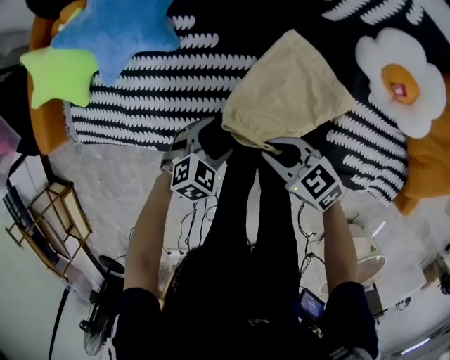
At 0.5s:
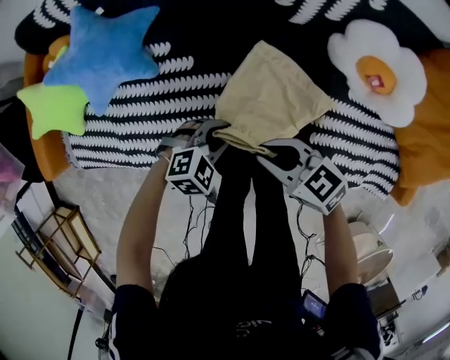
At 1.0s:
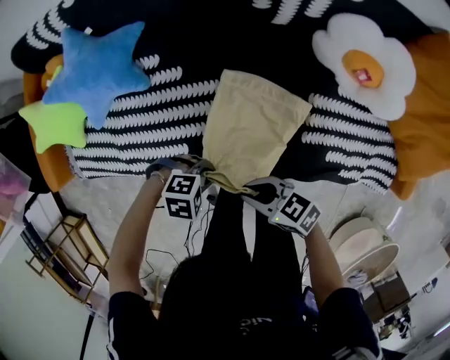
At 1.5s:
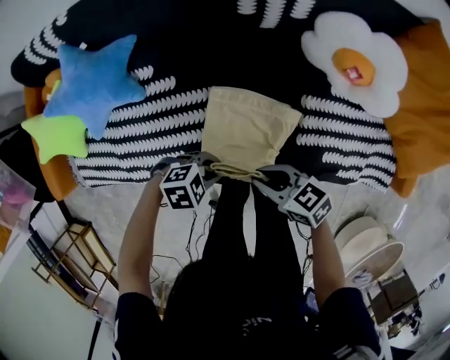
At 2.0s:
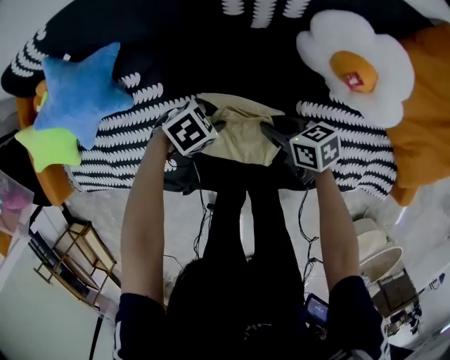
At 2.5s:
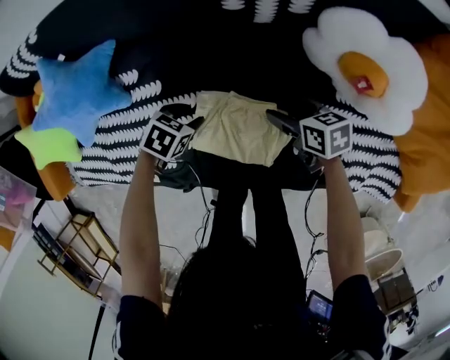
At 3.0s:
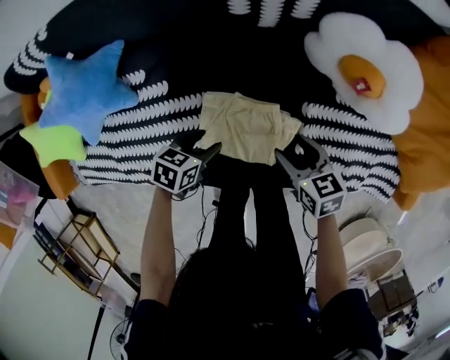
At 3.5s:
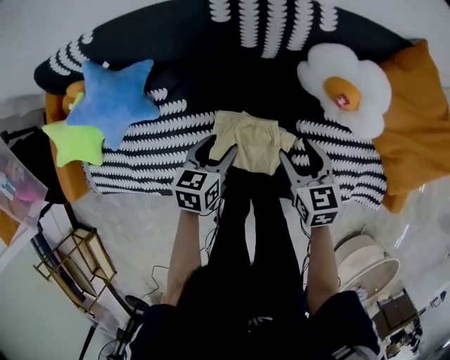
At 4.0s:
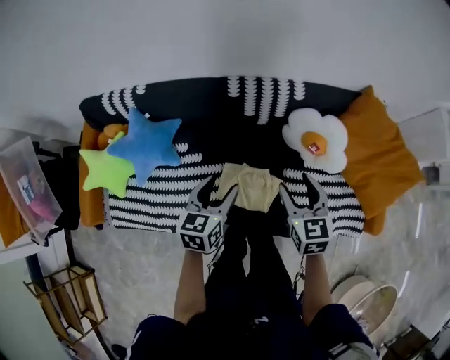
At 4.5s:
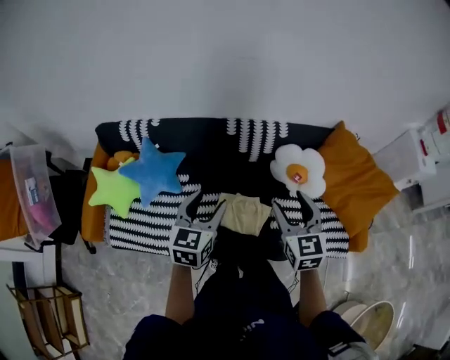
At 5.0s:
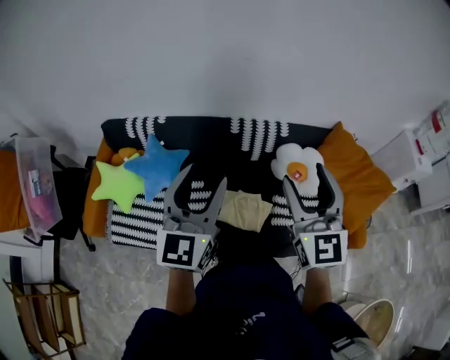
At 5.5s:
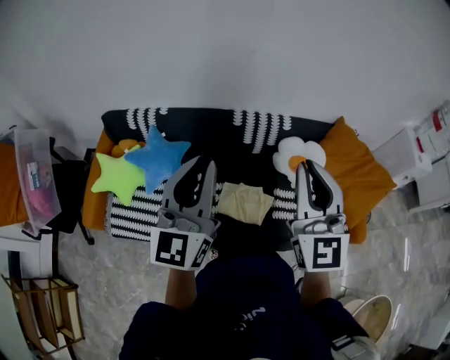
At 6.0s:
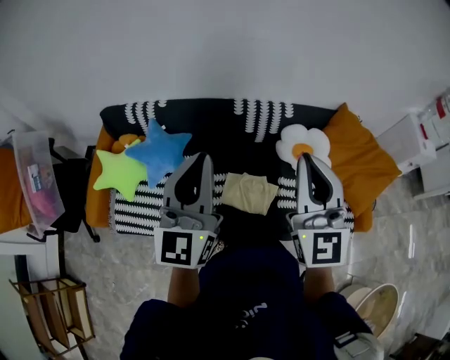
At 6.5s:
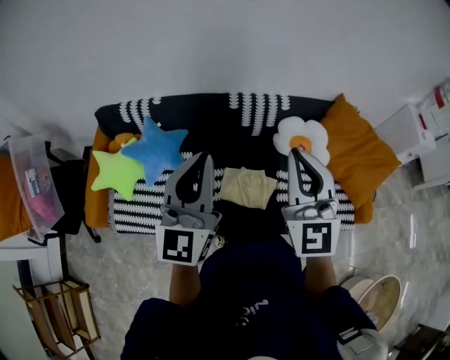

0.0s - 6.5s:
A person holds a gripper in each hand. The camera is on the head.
0.0s - 2.0s: The right gripper moves some 20 cm, and turns by about 30 degrees. Meanwhile the left gripper moves approximately 20 cm, swivels some 30 degrees, and closes.
2.0s - 4.5s: The grippers both shift upward by roughly 50 cm. The right gripper swivels approximately 60 degrees, and opens its fingers. Meanwhile the left gripper tips its fingers upward by some 40 degrees, and opens up.
4.5s - 6.5s: The left gripper heads upward, covering some 20 cm, angles its fingers upward, by about 40 degrees, and closes up; the right gripper is displaced upward and to the left by roughly 15 cm, turns by approximately 30 degrees, and closes its fingers.

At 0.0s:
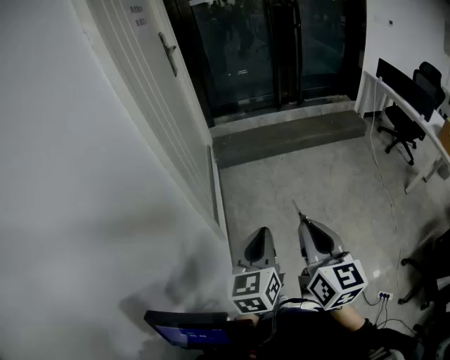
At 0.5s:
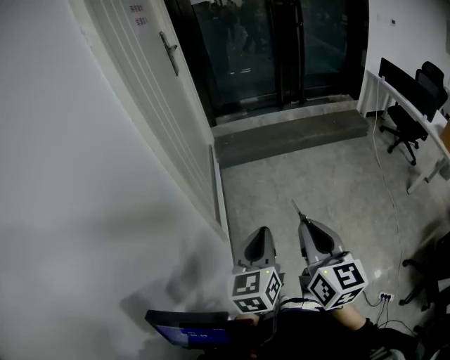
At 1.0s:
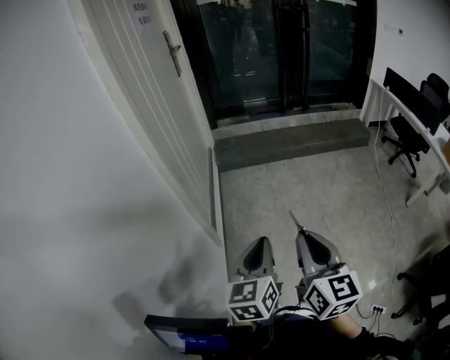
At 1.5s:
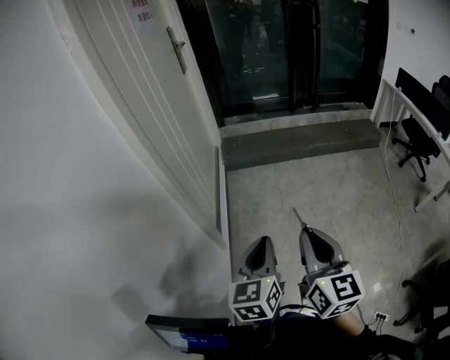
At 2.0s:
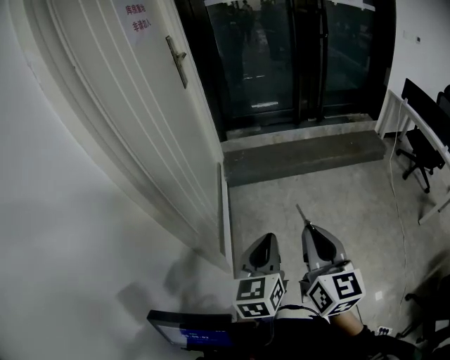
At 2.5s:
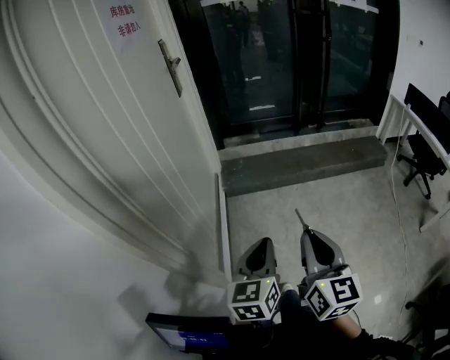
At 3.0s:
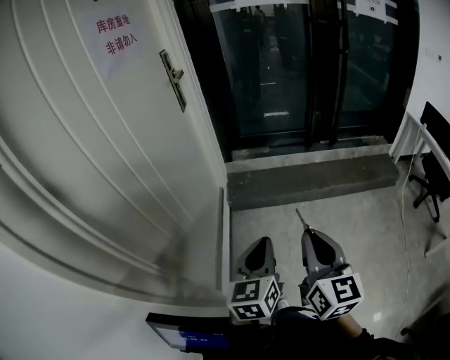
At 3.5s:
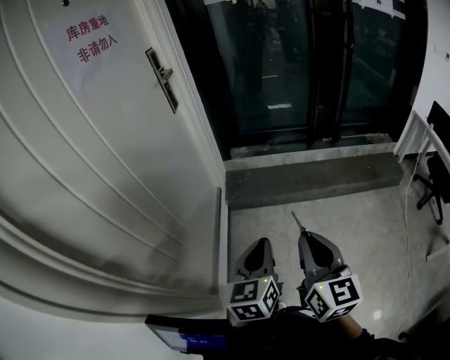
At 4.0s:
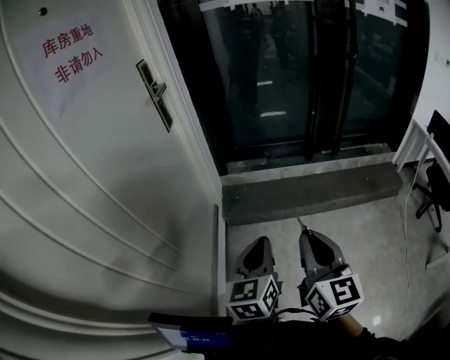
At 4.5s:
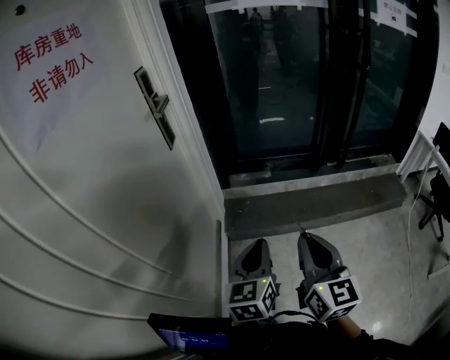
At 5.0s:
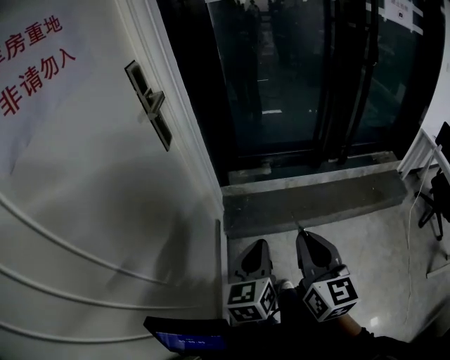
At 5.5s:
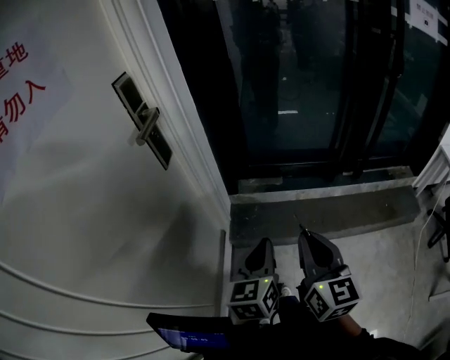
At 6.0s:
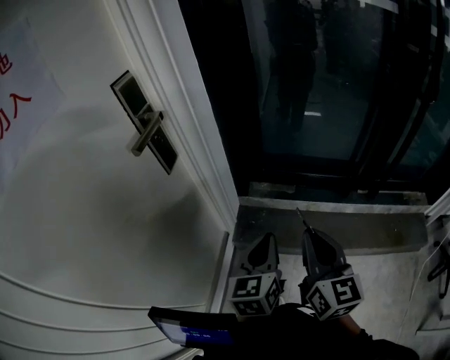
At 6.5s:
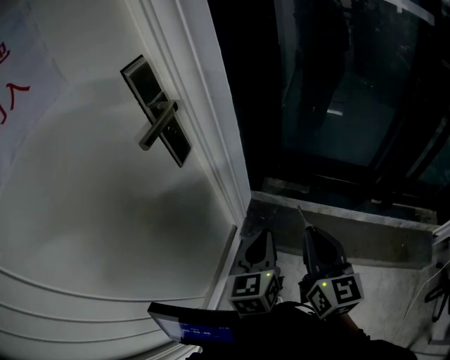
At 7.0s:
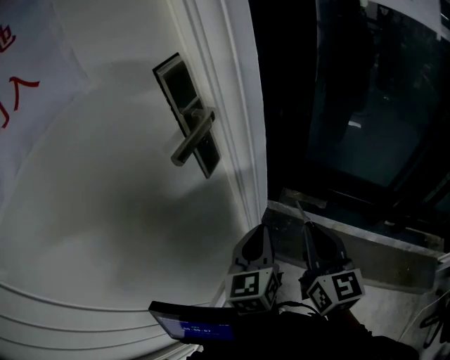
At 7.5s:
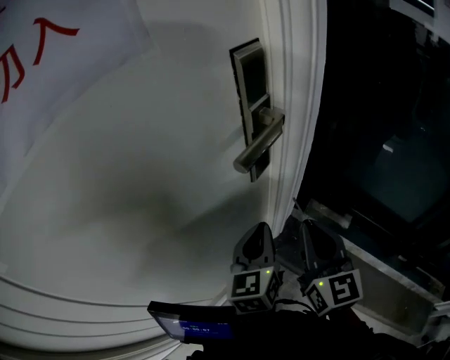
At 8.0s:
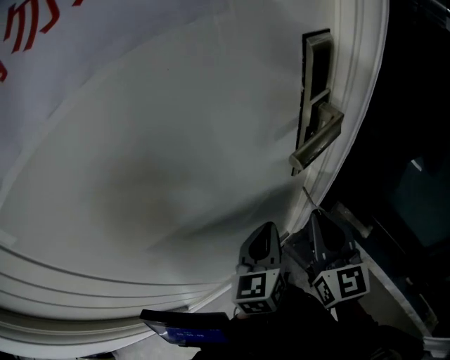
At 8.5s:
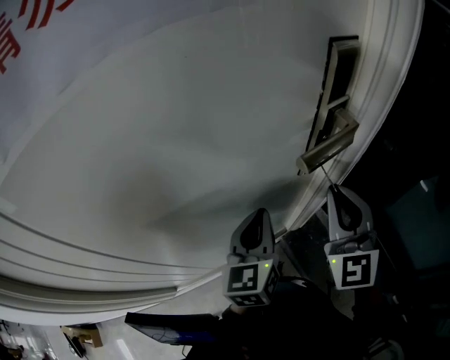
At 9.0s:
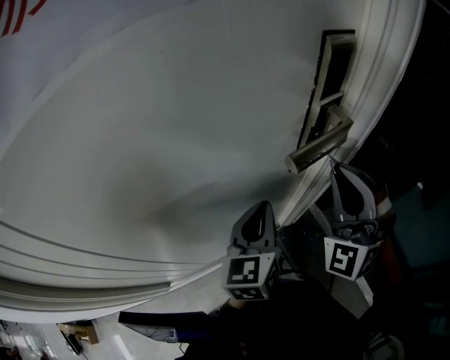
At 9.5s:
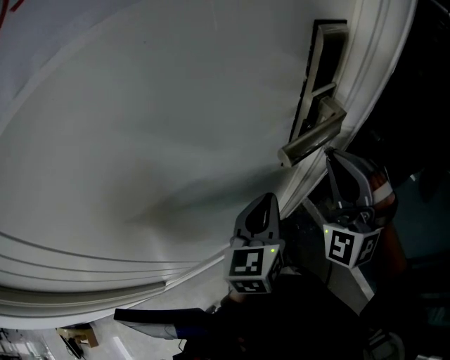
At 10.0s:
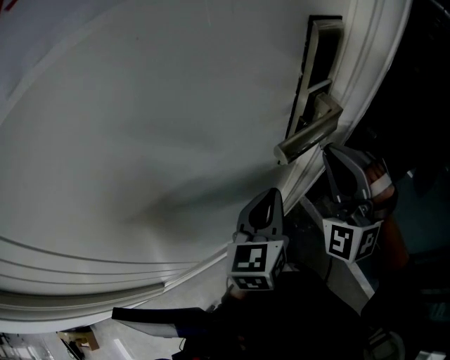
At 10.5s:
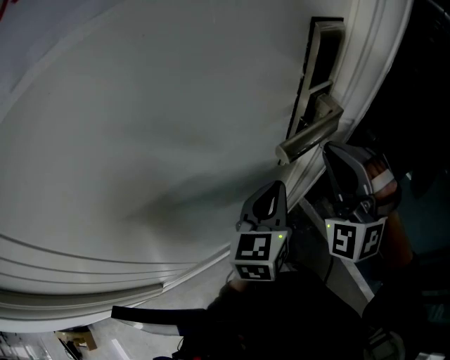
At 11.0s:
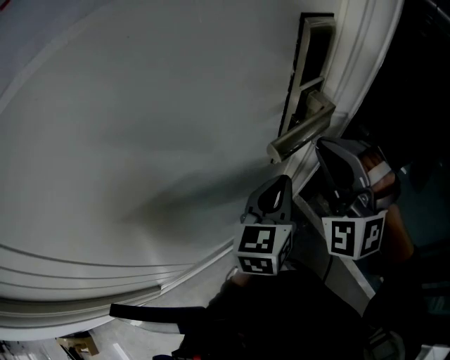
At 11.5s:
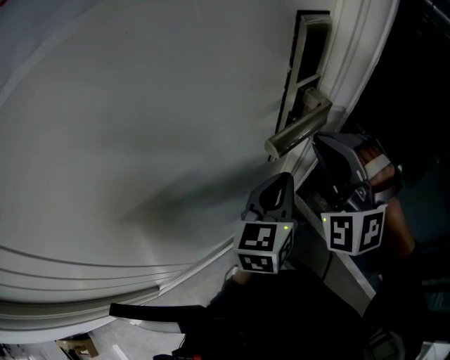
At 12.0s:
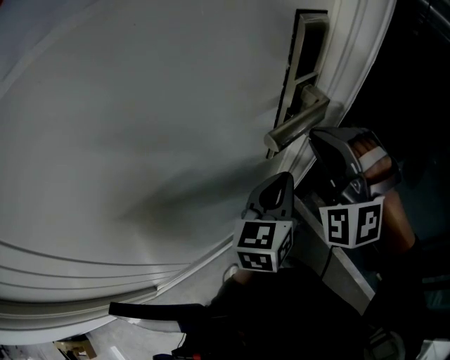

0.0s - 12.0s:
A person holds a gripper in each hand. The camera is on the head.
0.0s - 2.0s: The grippers both shift forward by about 20 cm.
2.0s - 4.0s: Both grippers are carried forward, approximately 40 cm.
4.0s - 6.0s: The two grippers go roughly 35 cm forward.
6.0s - 8.0s: The right gripper ends up about 35 cm from where it was, and rotates roughly 40 degrees, while the left gripper shifts by roughly 30 cm, and changes its angle by roughly 40 degrees.
8.0s - 10.0s: The right gripper heads forward and upward, covering roughly 10 cm, and twists approximately 80 degrees counterclockwise, seen from behind; the left gripper changes place by about 5 cm.
10.0s - 12.0s: The left gripper moves some 5 cm.

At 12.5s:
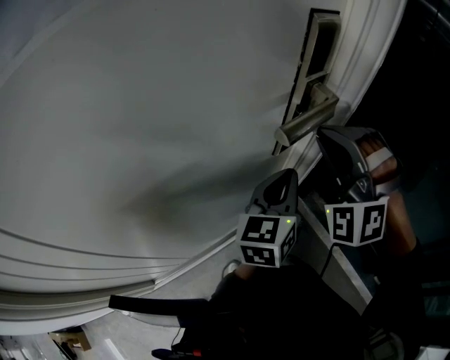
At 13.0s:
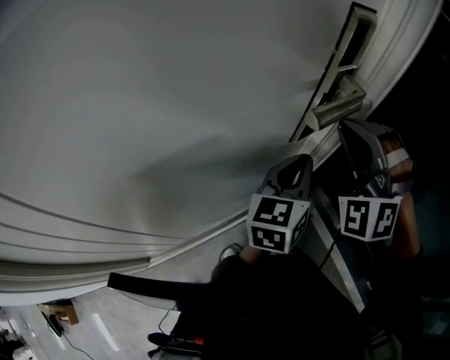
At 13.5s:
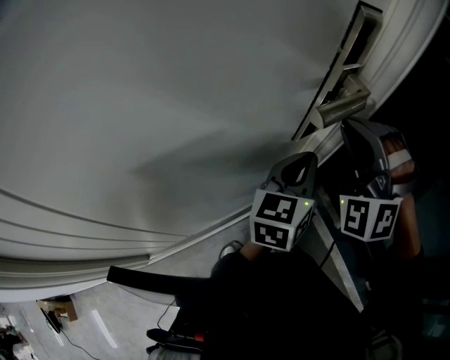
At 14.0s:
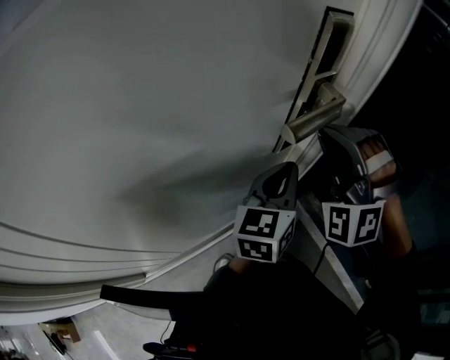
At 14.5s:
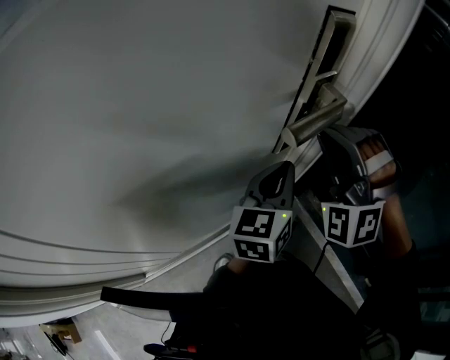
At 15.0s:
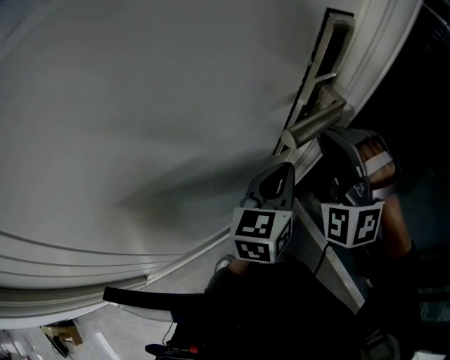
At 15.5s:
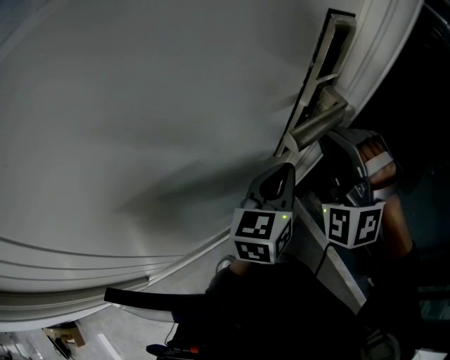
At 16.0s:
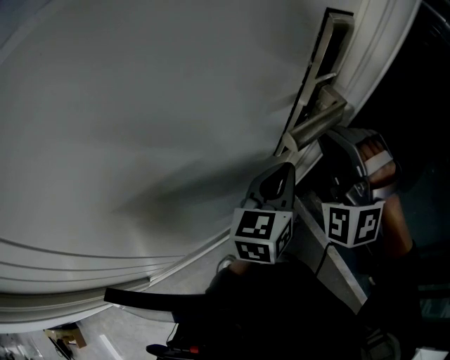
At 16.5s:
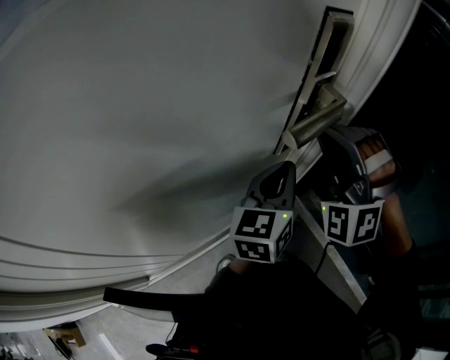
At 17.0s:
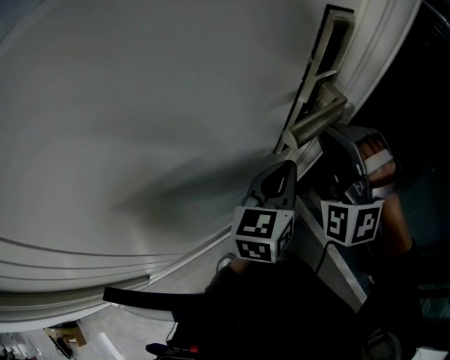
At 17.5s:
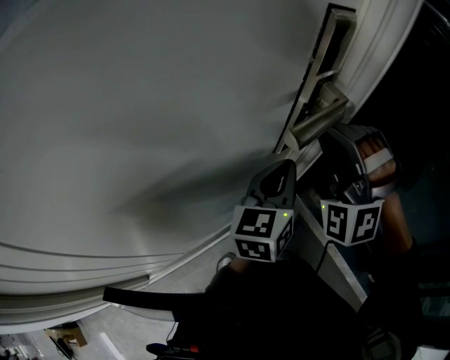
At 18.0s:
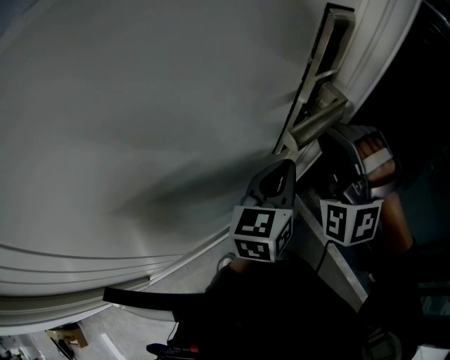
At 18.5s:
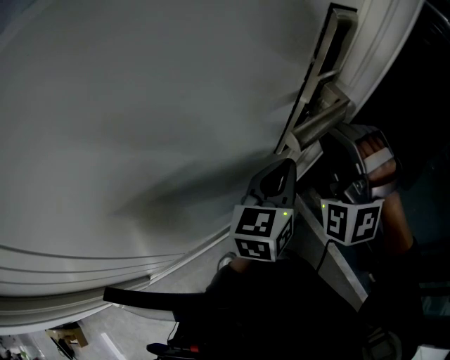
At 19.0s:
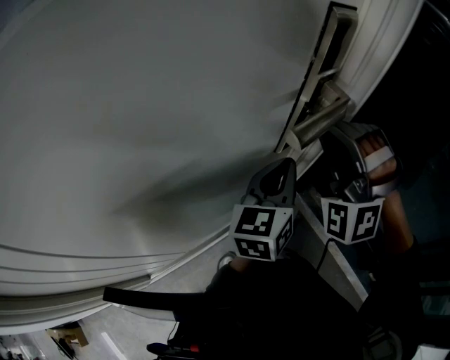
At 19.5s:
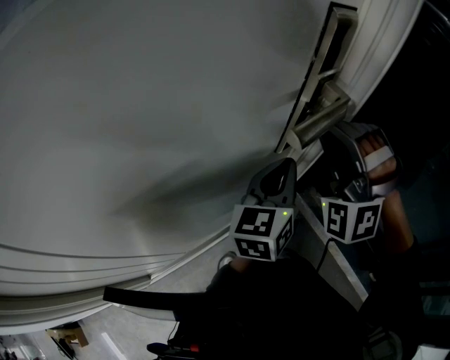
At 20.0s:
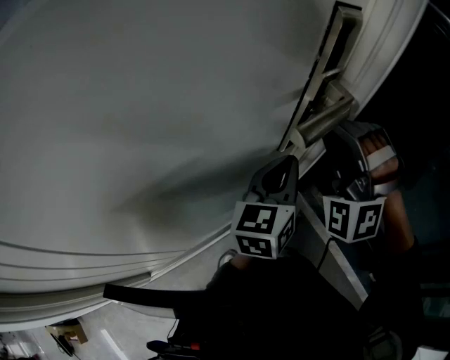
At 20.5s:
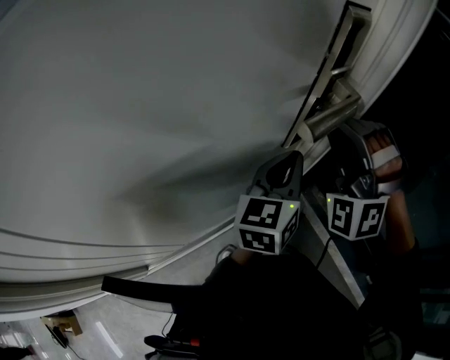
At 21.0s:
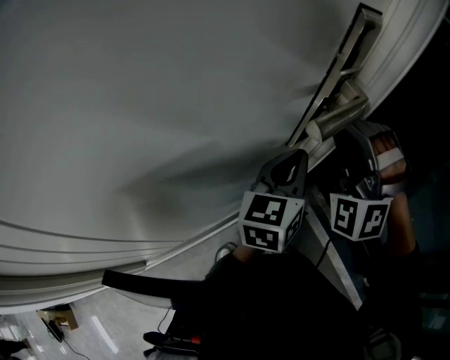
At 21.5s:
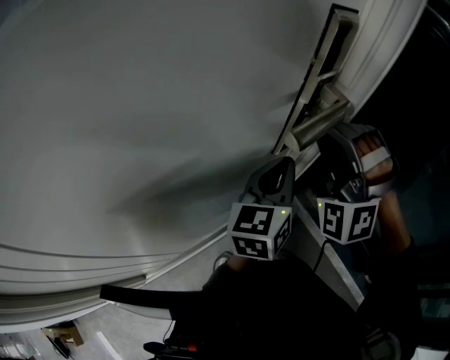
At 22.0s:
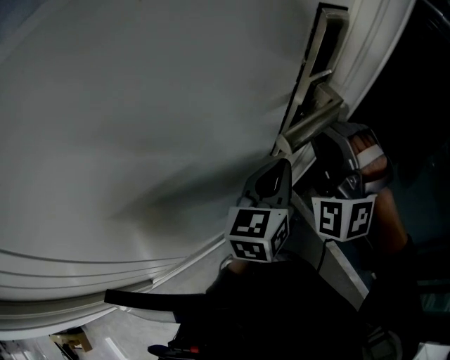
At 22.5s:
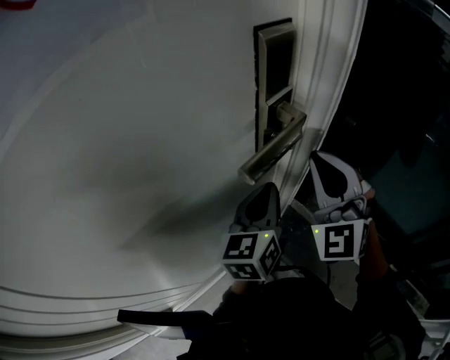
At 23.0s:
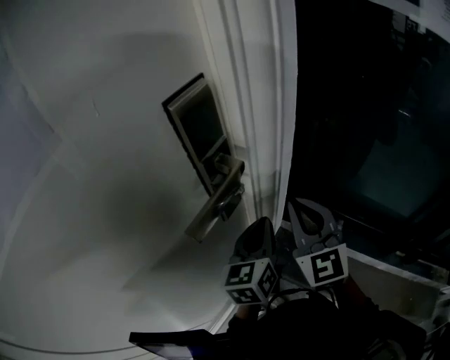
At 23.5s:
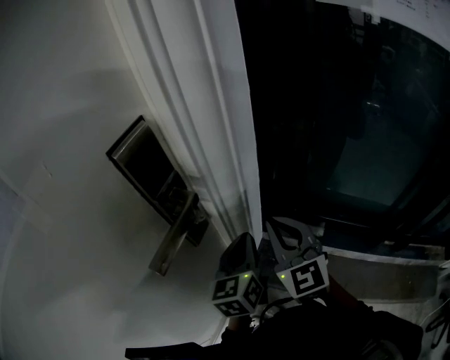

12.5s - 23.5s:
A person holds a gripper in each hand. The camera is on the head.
12.5s - 14.5s: The grippers make only small movements.
14.5s - 20.0s: The two grippers keep their place.
20.0s - 21.5s: The two grippers keep their place.
21.5s - 23.5s: The right gripper heads to the right and downward, covering some 15 cm, and rotates around the line of its fingers by approximately 80 degrees, clockwise from behind; the left gripper heads to the right, covering some 10 cm.
